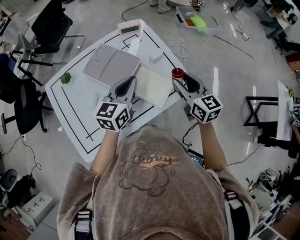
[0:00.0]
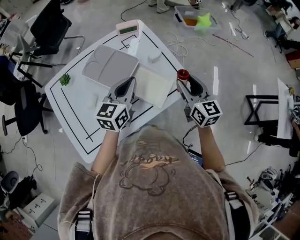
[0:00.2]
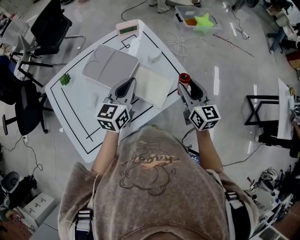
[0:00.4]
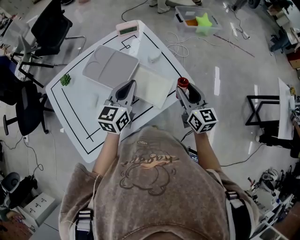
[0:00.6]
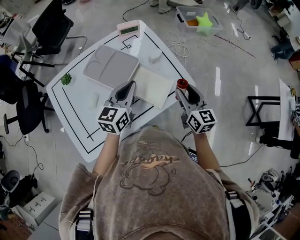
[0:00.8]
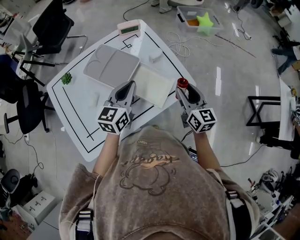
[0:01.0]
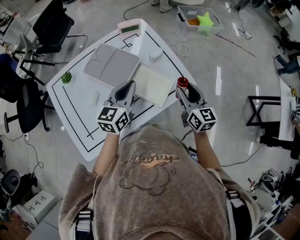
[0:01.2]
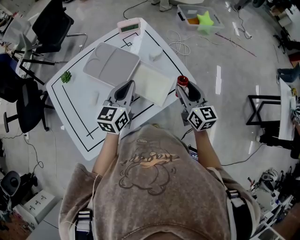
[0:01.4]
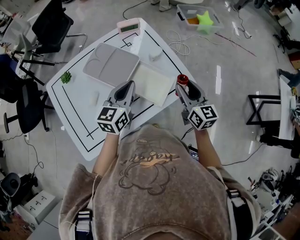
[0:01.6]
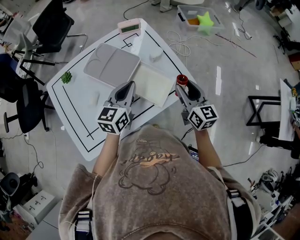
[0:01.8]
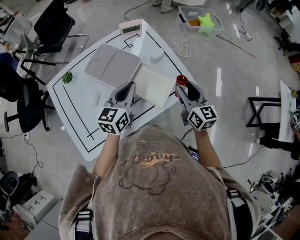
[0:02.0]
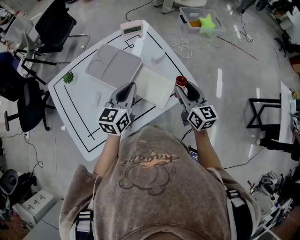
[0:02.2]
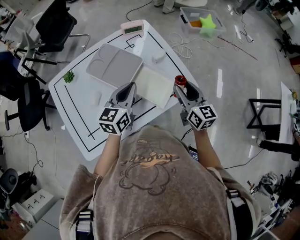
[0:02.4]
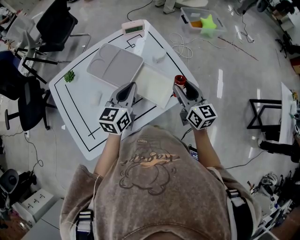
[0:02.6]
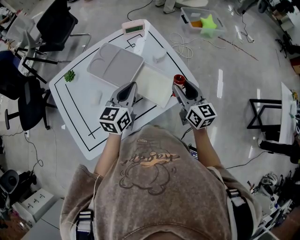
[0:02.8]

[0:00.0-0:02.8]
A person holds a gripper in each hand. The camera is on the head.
0:00.0 to 0:01.4: The right gripper shifts by roughly 5 cm.
0:01.4 to 0:02.8: The grippers make only small movements.

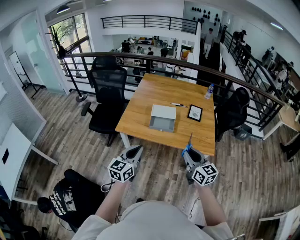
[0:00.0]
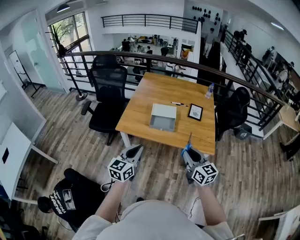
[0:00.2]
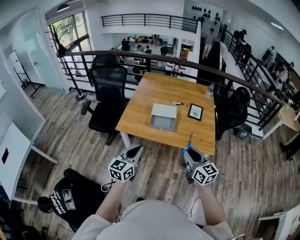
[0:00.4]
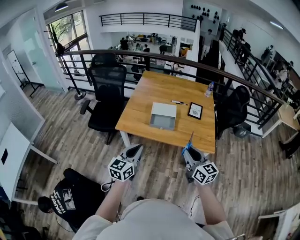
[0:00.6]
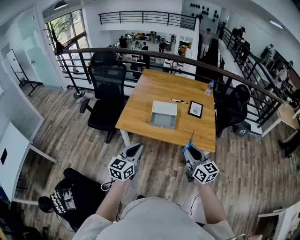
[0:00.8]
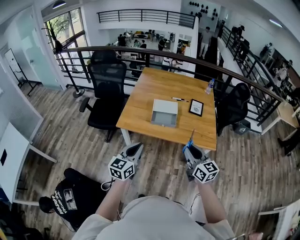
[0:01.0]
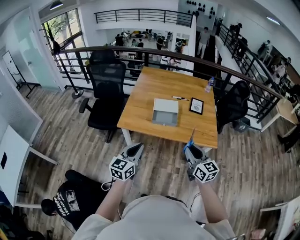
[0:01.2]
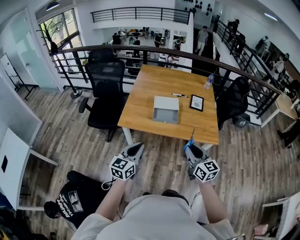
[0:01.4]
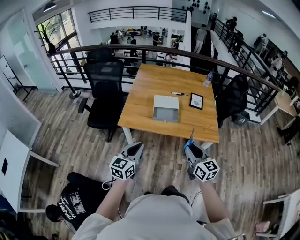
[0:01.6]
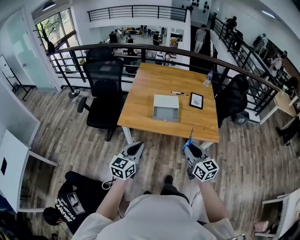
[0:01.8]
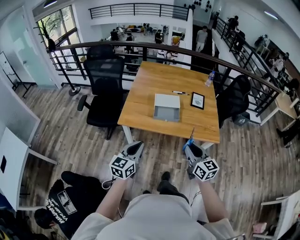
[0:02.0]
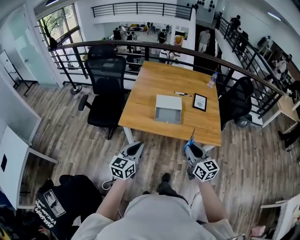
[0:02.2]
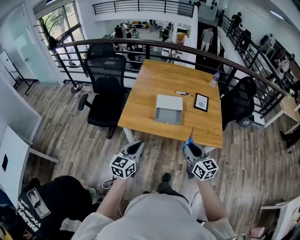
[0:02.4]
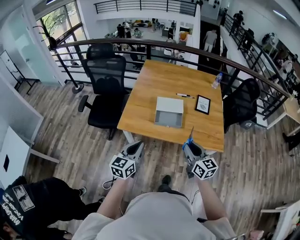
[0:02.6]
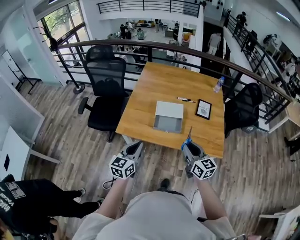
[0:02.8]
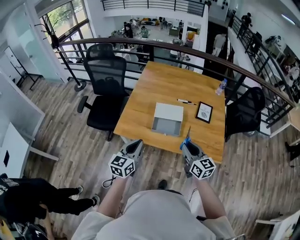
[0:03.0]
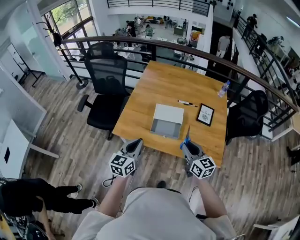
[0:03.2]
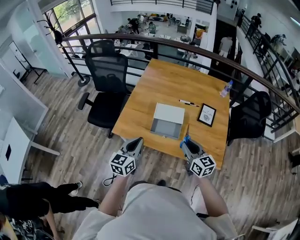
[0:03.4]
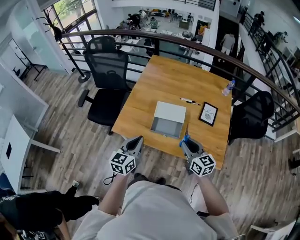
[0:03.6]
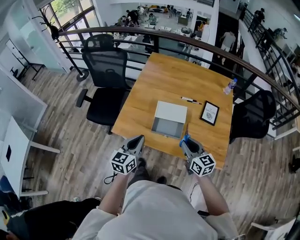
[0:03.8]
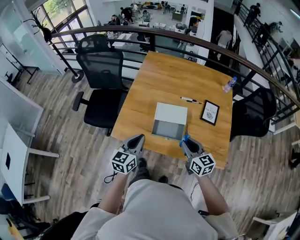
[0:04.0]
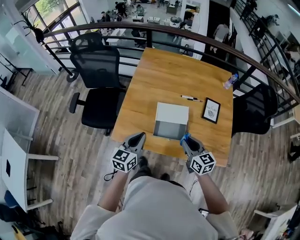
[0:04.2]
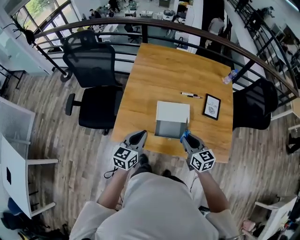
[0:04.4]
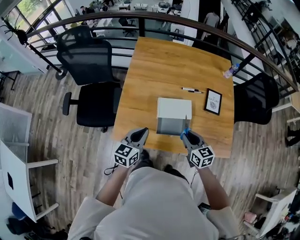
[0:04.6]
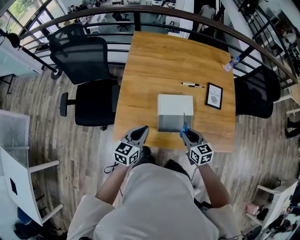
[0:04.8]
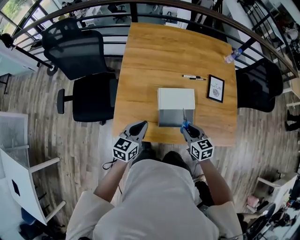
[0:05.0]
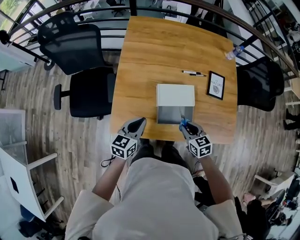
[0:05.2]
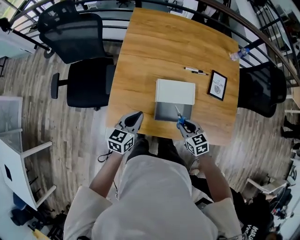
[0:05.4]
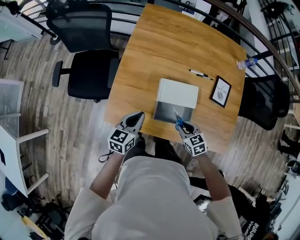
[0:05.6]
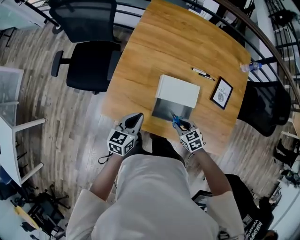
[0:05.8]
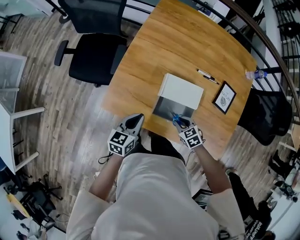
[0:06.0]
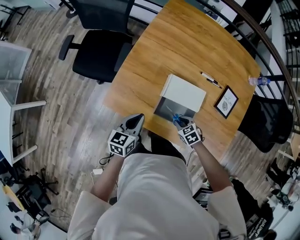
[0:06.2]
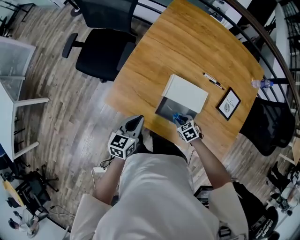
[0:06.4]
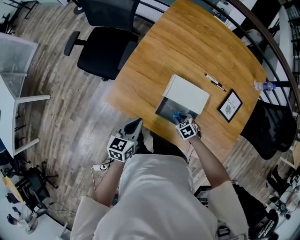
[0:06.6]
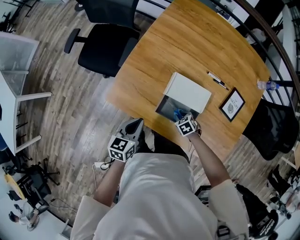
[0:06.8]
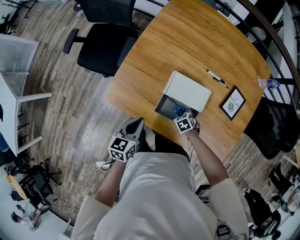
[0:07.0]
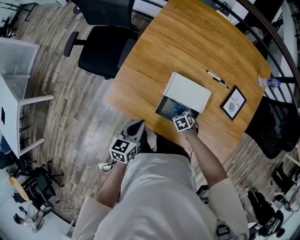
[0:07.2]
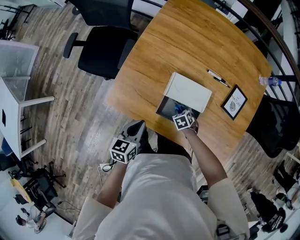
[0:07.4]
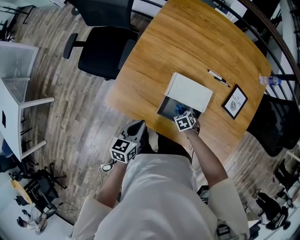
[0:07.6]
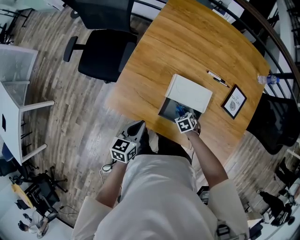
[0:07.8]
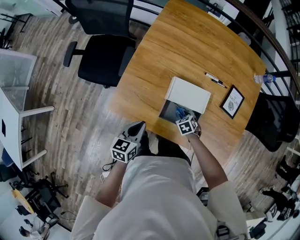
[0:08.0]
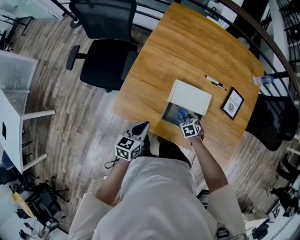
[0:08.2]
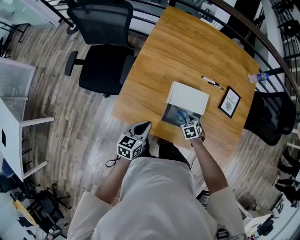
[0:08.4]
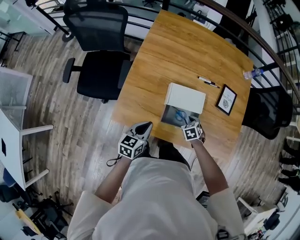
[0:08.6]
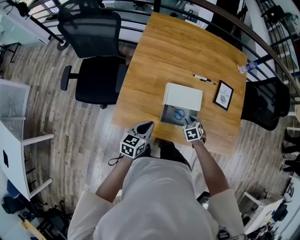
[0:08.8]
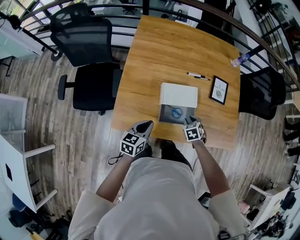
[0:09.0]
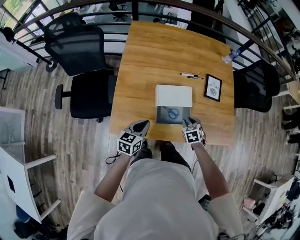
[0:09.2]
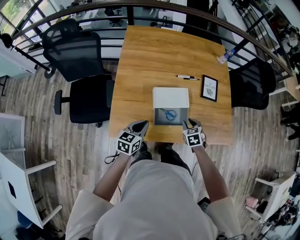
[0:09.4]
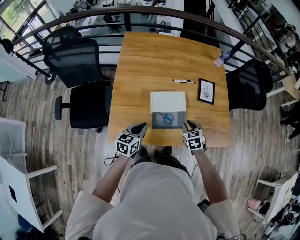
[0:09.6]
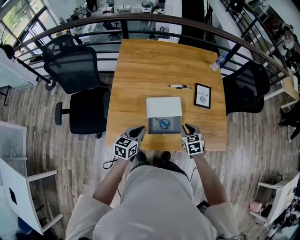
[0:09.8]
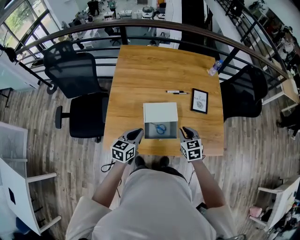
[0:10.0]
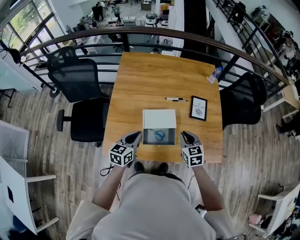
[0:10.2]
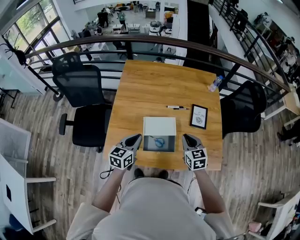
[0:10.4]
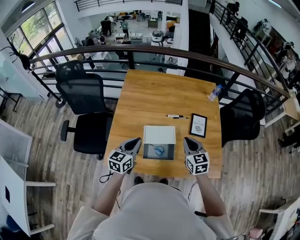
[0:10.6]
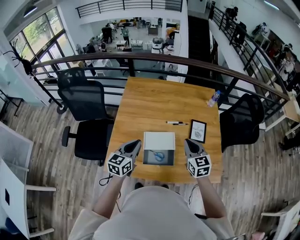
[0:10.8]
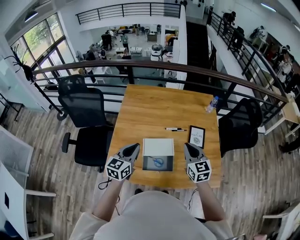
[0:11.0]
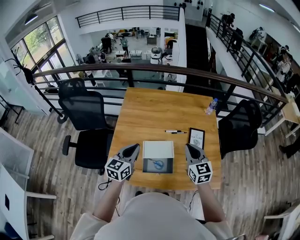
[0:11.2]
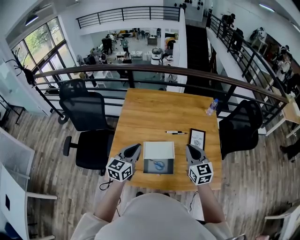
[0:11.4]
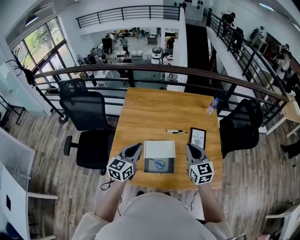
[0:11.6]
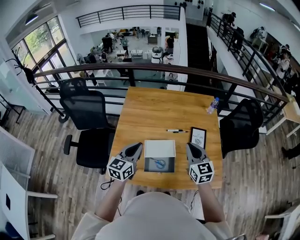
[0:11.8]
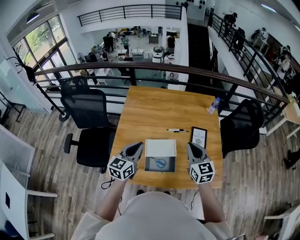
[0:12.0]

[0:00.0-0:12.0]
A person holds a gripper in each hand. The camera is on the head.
0:00.0 to 0:01.6: The grippers both shift to the left by about 5 cm.
0:01.6 to 0:03.0: The two grippers go some 20 cm forward.
0:03.0 to 0:04.4: The left gripper goes some 20 cm forward, while the right gripper goes some 20 cm forward and downward.
0:04.4 to 0:06.0: The right gripper shifts roughly 20 cm downward, and tips its fingers downward by about 40 degrees, while the left gripper shifts roughly 15 cm downward.
0:06.0 to 0:07.6: The right gripper is displaced downward by about 10 cm.
0:07.6 to 0:09.0: The right gripper heads upward, covering roughly 15 cm, and swivels roughly 30 degrees, while the left gripper swivels some 30 degrees.
0:09.0 to 0:10.4: The right gripper goes approximately 20 cm upward, tilts its fingers about 30 degrees upward, and closes its fingers. Meanwhile the left gripper goes about 15 cm upward and forward.
0:10.4 to 0:12.0: Both grippers travel together upward, approximately 10 cm.

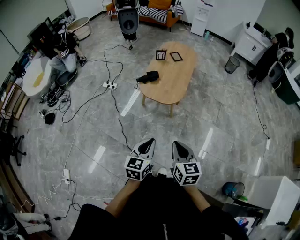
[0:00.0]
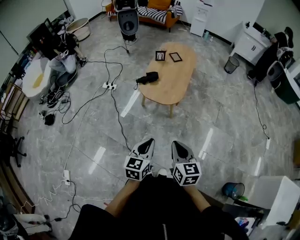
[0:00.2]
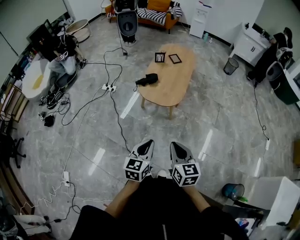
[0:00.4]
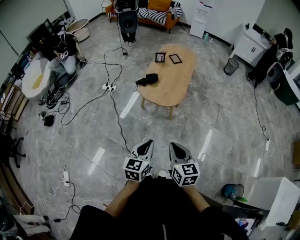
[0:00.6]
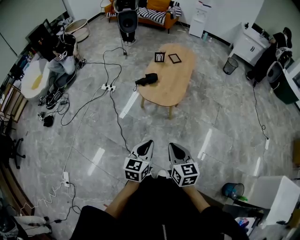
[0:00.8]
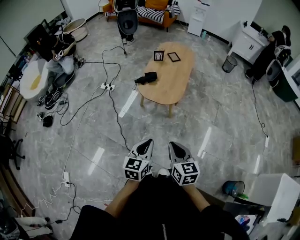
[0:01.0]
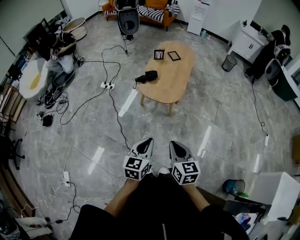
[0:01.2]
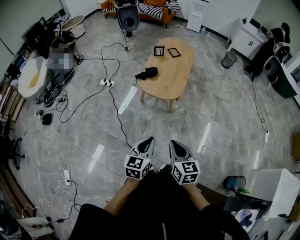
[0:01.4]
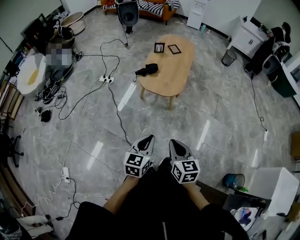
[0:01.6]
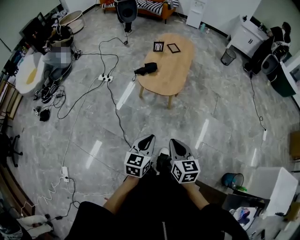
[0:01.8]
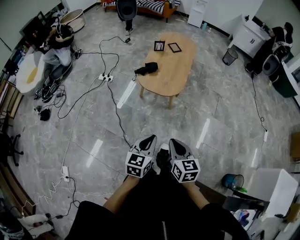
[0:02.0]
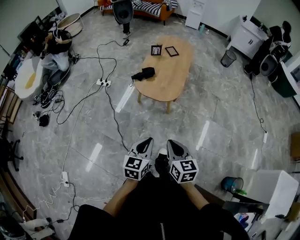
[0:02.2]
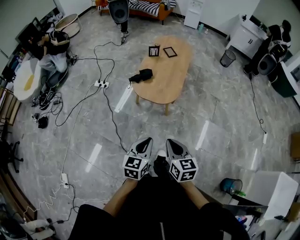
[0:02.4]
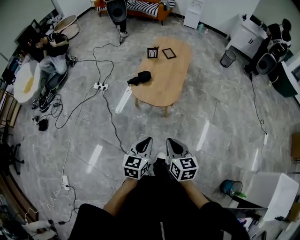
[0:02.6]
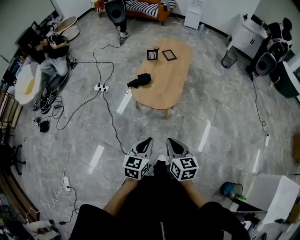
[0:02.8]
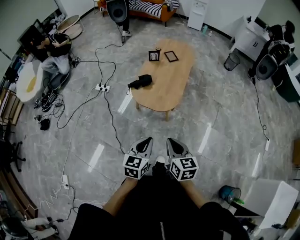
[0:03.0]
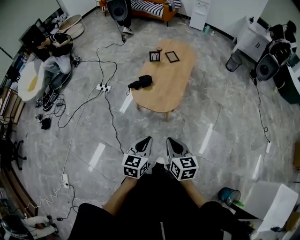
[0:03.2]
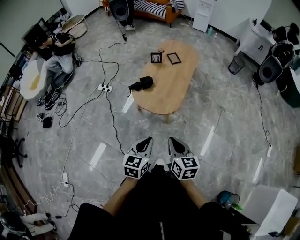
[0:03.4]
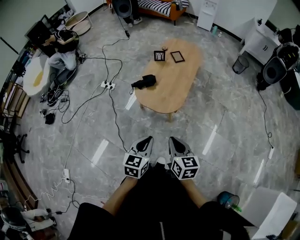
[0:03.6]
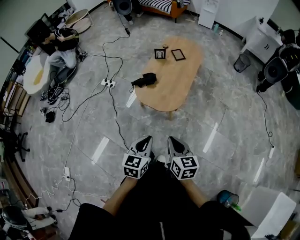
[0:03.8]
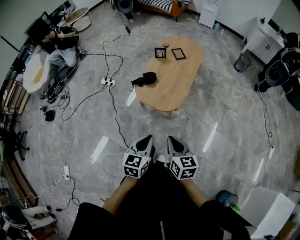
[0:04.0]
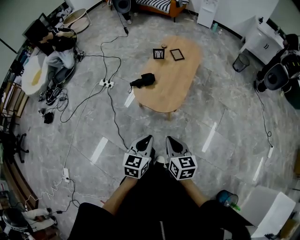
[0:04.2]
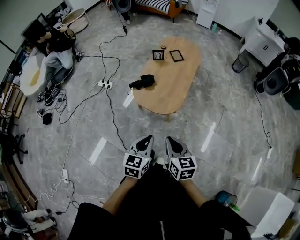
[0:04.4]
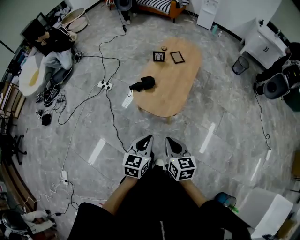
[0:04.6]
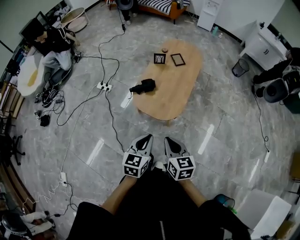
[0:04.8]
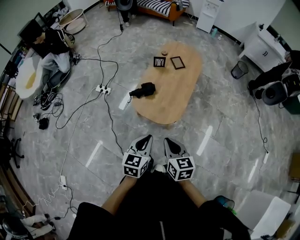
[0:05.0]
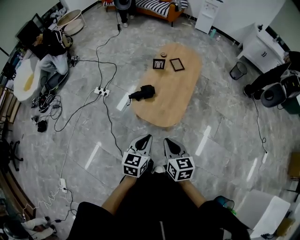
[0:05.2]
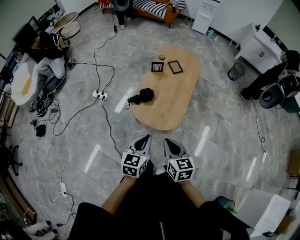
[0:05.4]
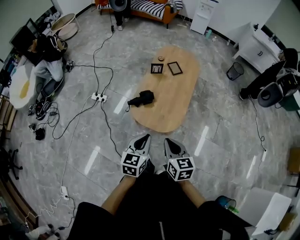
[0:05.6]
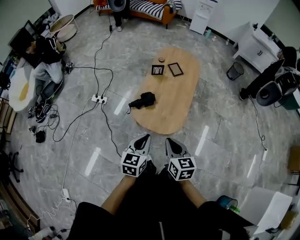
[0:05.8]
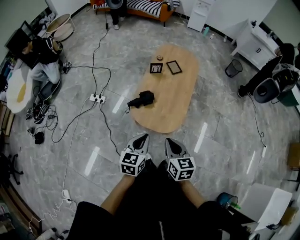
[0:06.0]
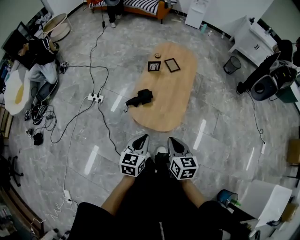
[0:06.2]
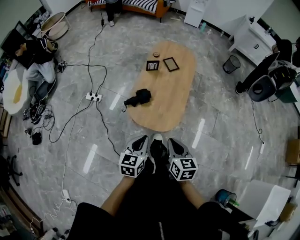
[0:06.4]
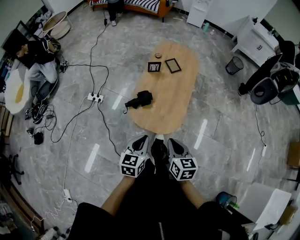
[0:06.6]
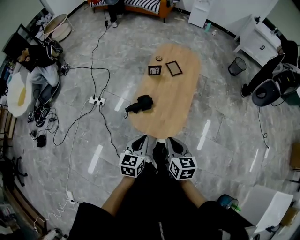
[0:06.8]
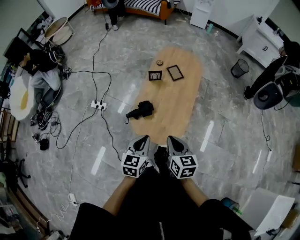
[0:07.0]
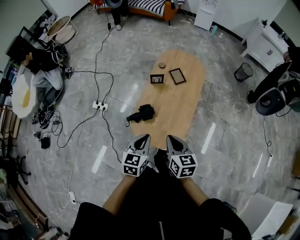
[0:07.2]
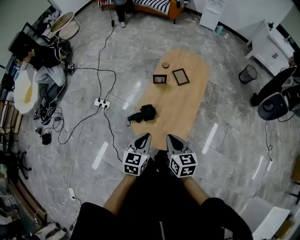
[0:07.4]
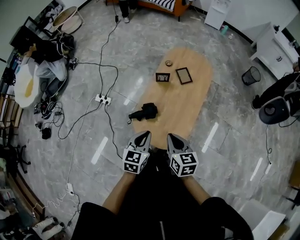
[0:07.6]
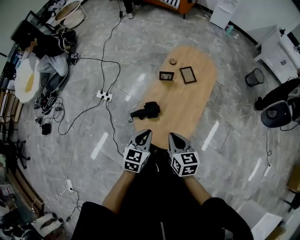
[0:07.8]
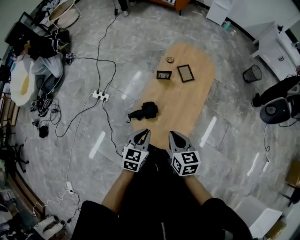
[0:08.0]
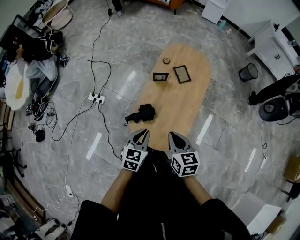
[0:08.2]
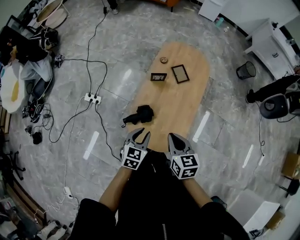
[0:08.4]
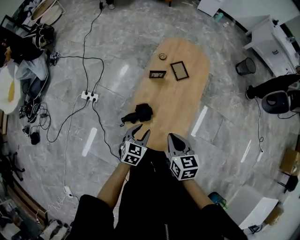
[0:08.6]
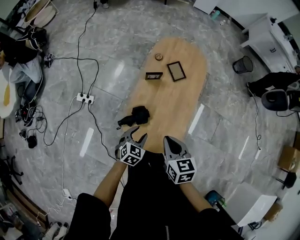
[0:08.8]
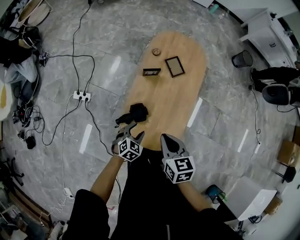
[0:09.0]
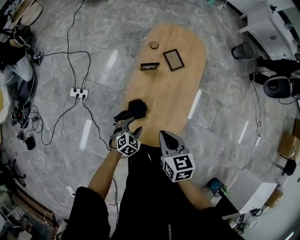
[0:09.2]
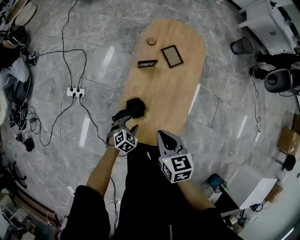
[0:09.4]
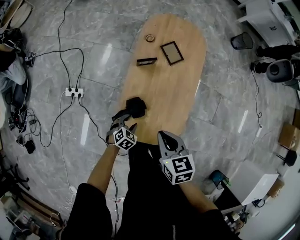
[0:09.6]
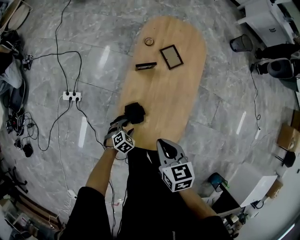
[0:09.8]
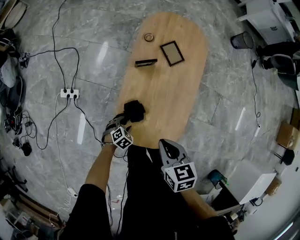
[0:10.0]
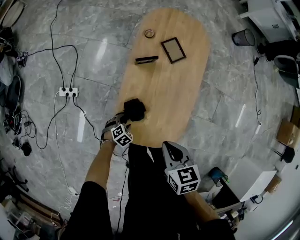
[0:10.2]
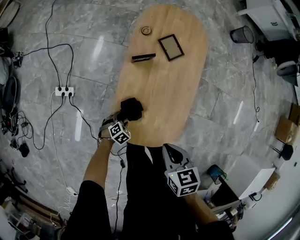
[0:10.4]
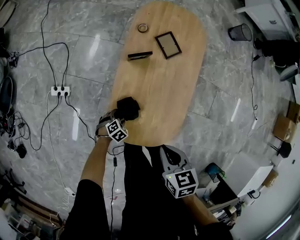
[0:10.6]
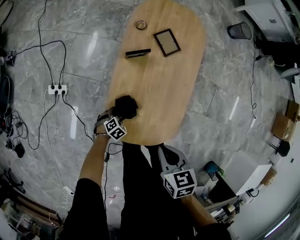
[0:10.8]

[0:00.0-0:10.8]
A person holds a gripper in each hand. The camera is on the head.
0:00.0 to 0:01.6: The right gripper ends up approximately 5 cm from where it was.
0:01.6 to 0:03.0: The right gripper goes some 15 cm forward. The left gripper goes roughly 15 cm forward and to the right.
0:03.0 to 0:04.6: Both grippers travel together forward, about 10 cm.
0:04.6 to 0:06.2: The left gripper goes roughly 15 cm forward and to the left; the right gripper travels forward by some 15 cm.
0:06.2 to 0:07.8: The two grippers go approximately 20 cm forward.
0:07.8 to 0:09.2: The right gripper goes about 10 cm forward; the left gripper travels downward by about 20 cm, swivels approximately 40 degrees, and opens up.
0:09.2 to 0:10.8: The left gripper heads downward, covering about 20 cm, and rotates some 20 degrees, while the right gripper is displaced downward by about 10 cm.
